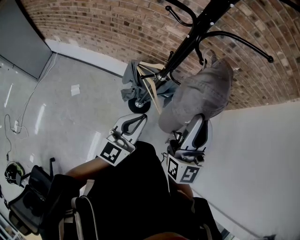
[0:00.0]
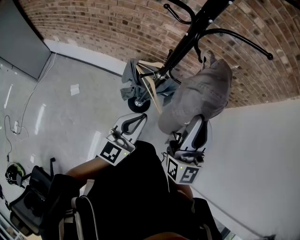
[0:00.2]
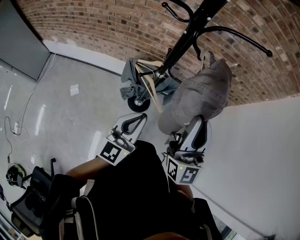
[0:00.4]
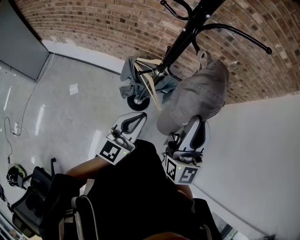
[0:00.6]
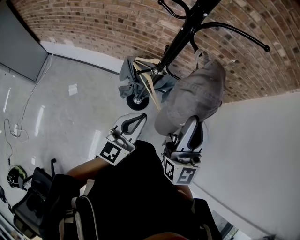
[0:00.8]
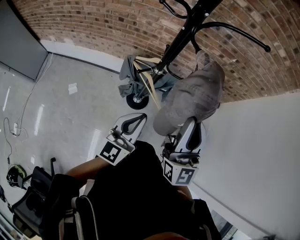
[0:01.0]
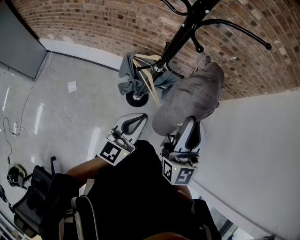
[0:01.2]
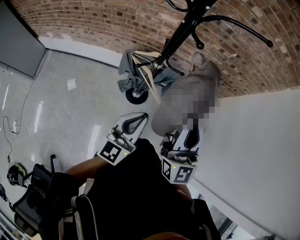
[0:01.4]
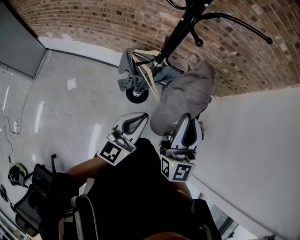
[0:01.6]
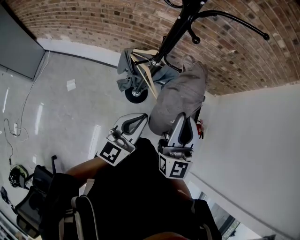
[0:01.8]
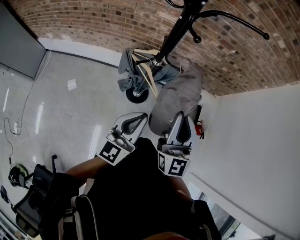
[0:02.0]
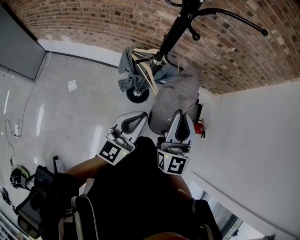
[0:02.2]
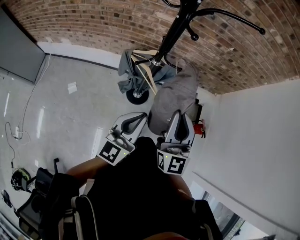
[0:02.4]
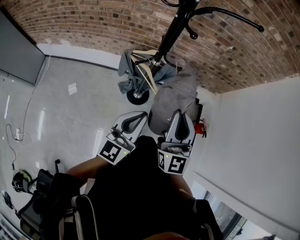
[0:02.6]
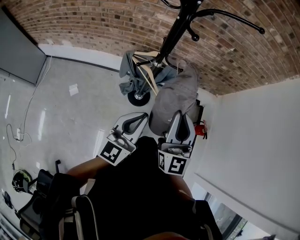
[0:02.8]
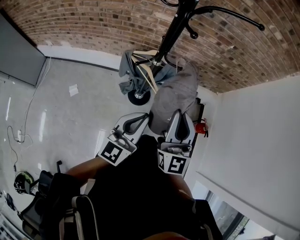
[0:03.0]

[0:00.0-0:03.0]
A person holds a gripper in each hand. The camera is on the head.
0:00.0 to 0:01.6: The right gripper moves roughly 5 cm.
0:01.6 to 0:03.0: There are only small adjustments of the grippers.

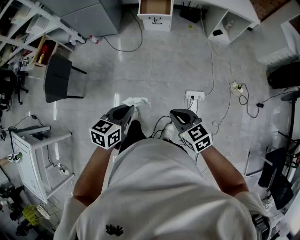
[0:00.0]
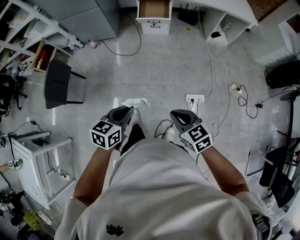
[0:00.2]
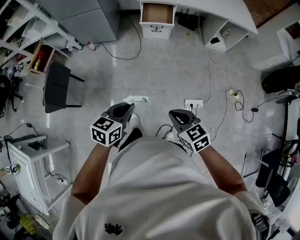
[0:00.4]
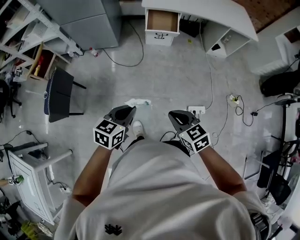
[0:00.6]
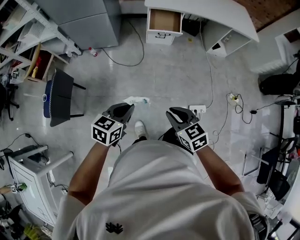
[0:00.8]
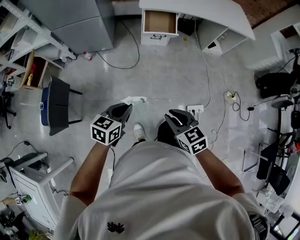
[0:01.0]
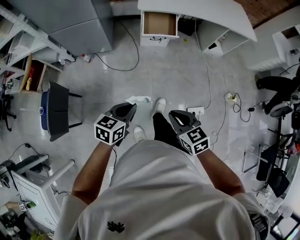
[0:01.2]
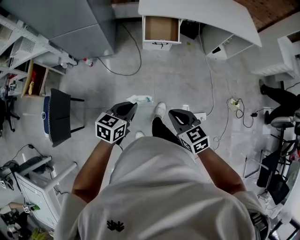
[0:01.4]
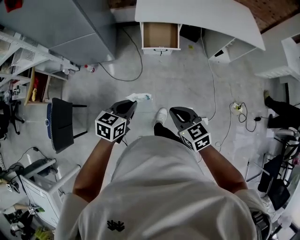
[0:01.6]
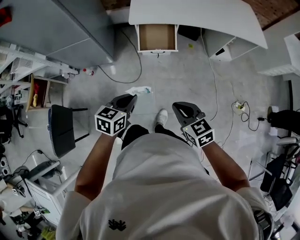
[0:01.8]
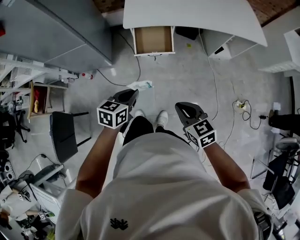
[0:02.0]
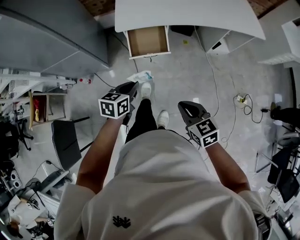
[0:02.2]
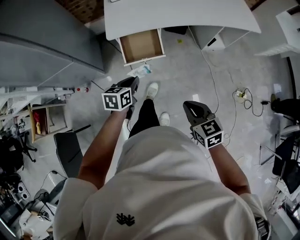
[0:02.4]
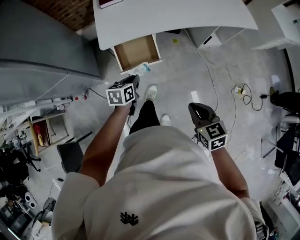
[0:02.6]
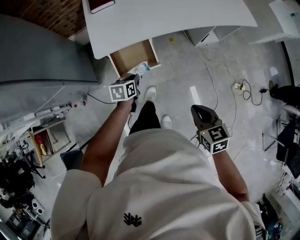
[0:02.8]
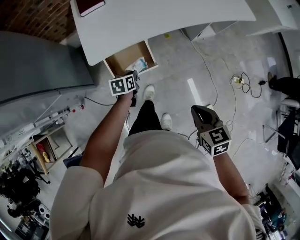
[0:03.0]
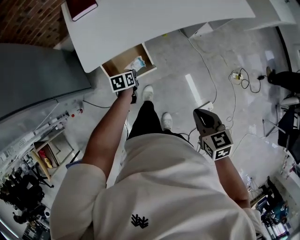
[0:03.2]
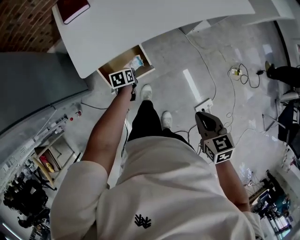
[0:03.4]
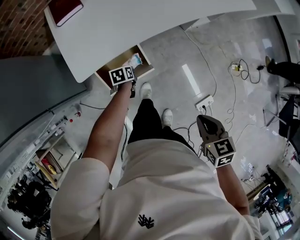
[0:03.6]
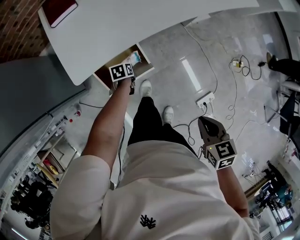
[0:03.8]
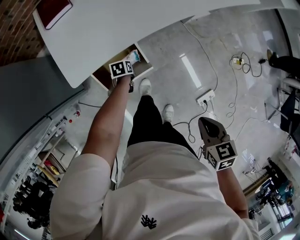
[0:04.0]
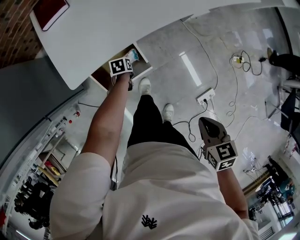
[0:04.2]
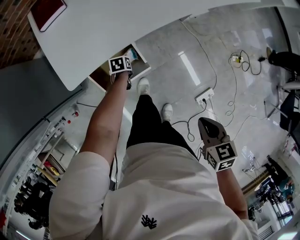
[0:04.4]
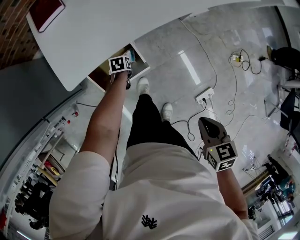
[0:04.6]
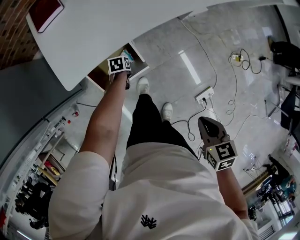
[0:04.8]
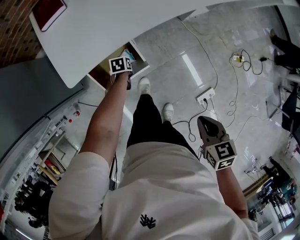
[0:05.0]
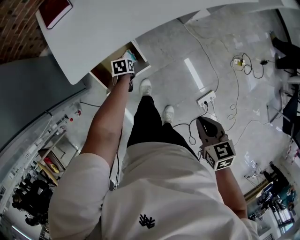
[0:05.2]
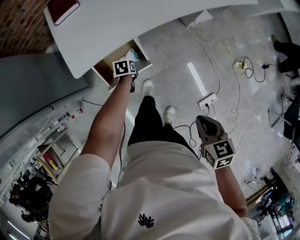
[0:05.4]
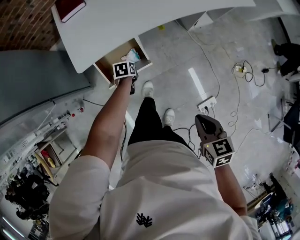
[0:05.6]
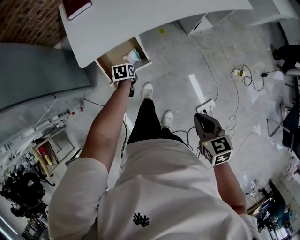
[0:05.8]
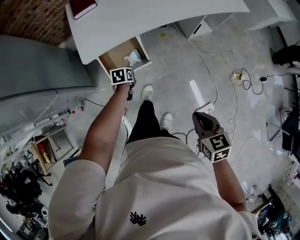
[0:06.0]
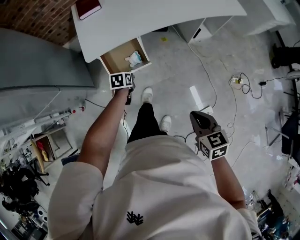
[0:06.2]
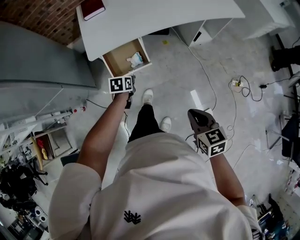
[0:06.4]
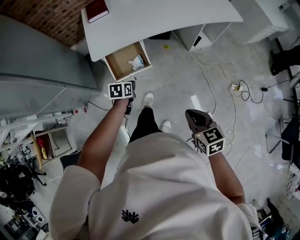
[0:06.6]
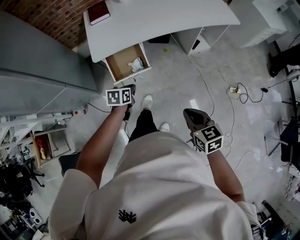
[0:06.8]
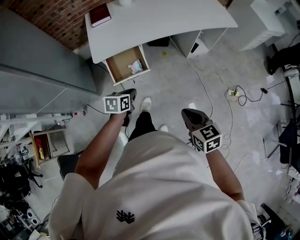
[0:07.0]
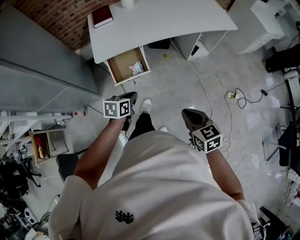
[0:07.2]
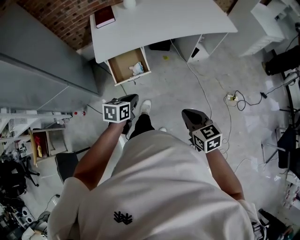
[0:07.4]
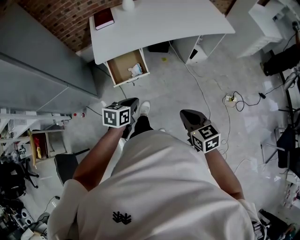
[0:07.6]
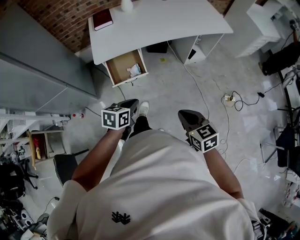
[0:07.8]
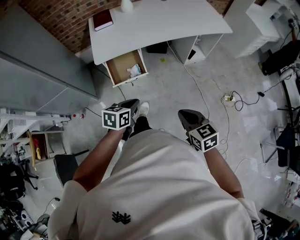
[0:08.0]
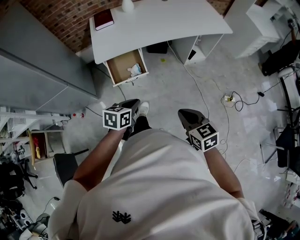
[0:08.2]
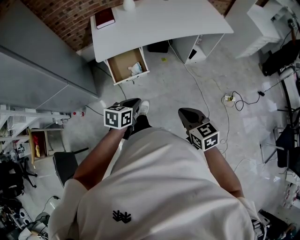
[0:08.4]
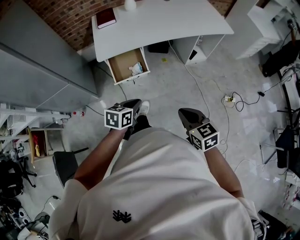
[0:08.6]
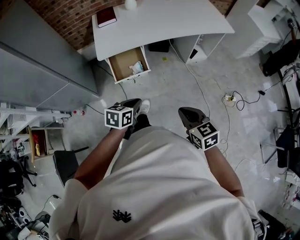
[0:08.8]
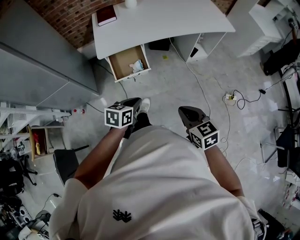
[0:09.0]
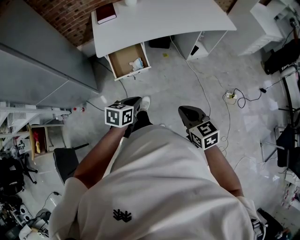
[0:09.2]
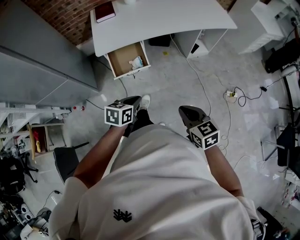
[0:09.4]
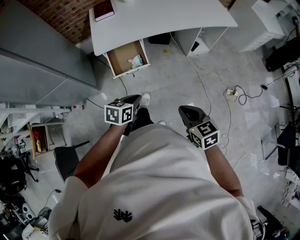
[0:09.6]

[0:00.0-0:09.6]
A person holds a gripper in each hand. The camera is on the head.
0:00.0 to 0:01.6: Both grippers are carried forward and to the left, roughly 50 cm.
0:01.6 to 0:03.2: The pair of grippers is taken forward, roughly 50 cm. The left gripper heads downward, covering roughly 25 cm, and turns by about 20 degrees. Meanwhile the right gripper swivels roughly 40 degrees.
0:03.2 to 0:04.8: The left gripper shifts about 20 cm downward and forward, and swivels some 20 degrees. Meanwhile the right gripper travels downward by approximately 10 cm.
0:04.8 to 0:06.4: The left gripper is displaced upward and backward by about 35 cm. Meanwhile the right gripper shifts roughly 20 cm backward and upward, and swivels about 20 degrees.
0:06.4 to 0:08.0: The left gripper is displaced backward and upward by about 30 cm, and changes its angle by about 20 degrees, while the right gripper heads backward and upward, covering approximately 10 cm.
0:08.0 to 0:09.6: The grippers make only small movements.

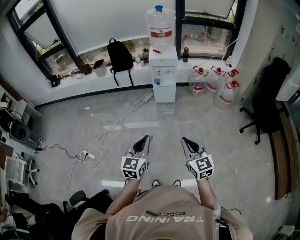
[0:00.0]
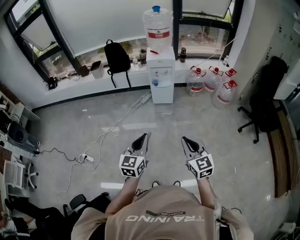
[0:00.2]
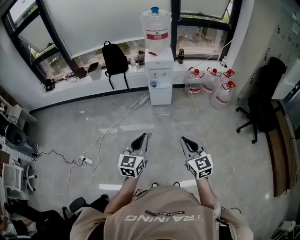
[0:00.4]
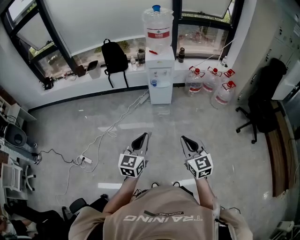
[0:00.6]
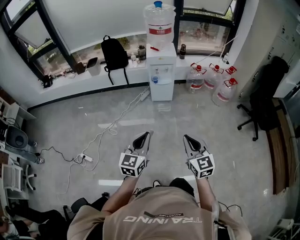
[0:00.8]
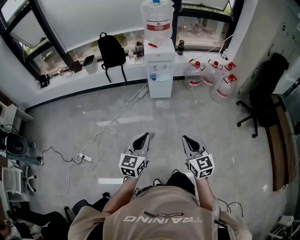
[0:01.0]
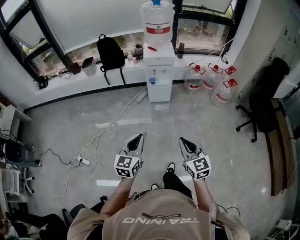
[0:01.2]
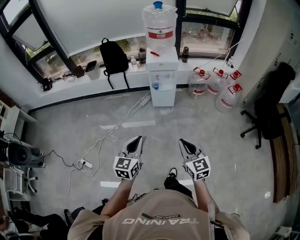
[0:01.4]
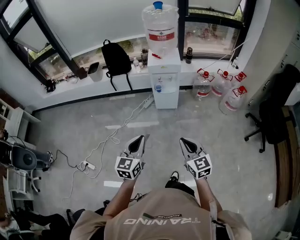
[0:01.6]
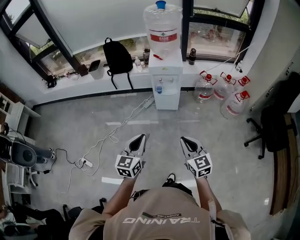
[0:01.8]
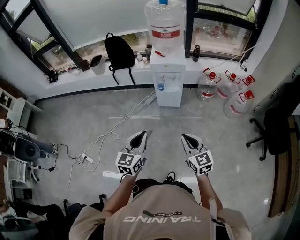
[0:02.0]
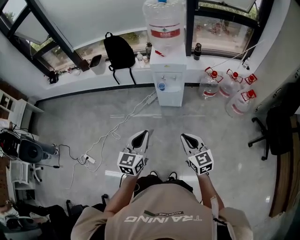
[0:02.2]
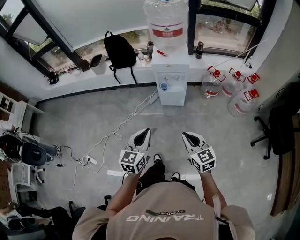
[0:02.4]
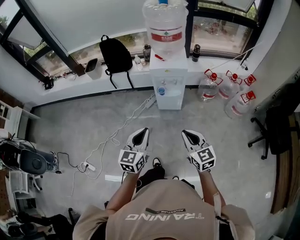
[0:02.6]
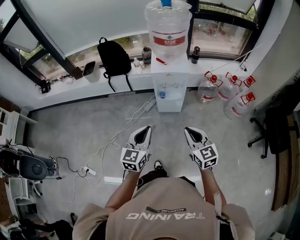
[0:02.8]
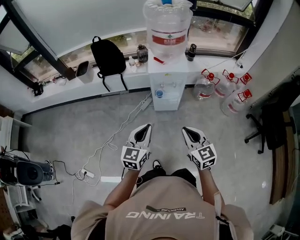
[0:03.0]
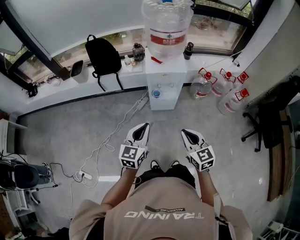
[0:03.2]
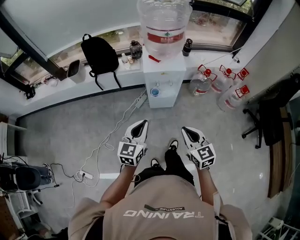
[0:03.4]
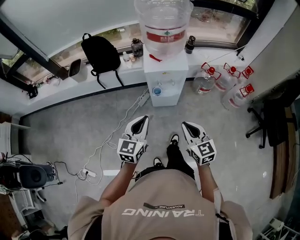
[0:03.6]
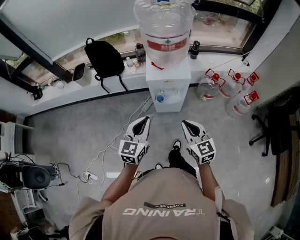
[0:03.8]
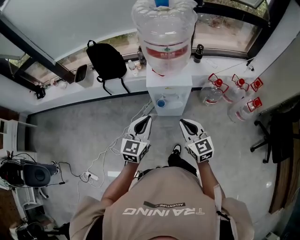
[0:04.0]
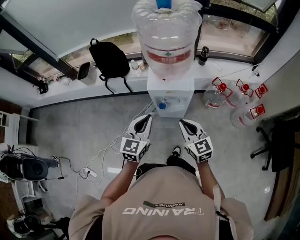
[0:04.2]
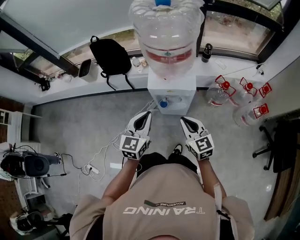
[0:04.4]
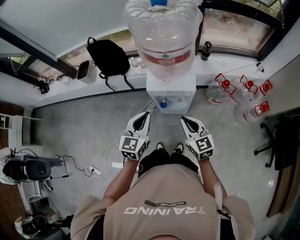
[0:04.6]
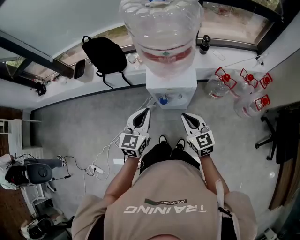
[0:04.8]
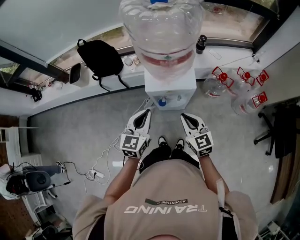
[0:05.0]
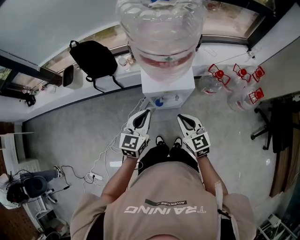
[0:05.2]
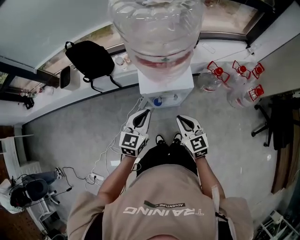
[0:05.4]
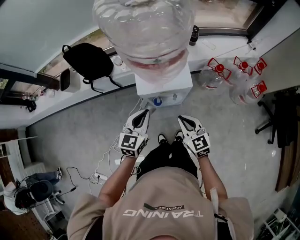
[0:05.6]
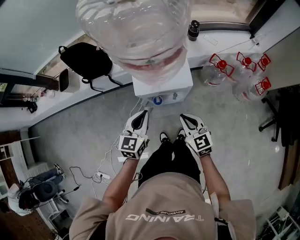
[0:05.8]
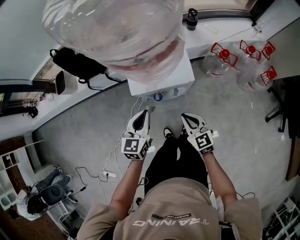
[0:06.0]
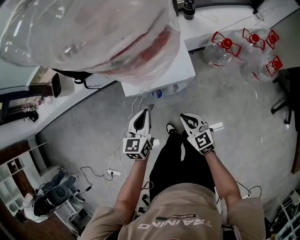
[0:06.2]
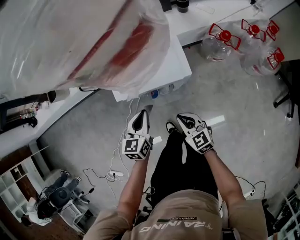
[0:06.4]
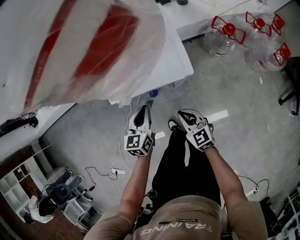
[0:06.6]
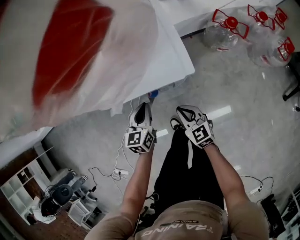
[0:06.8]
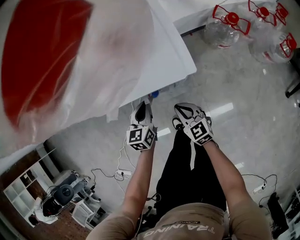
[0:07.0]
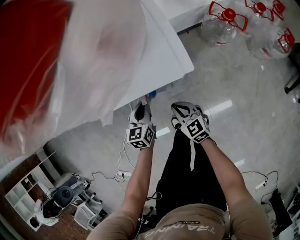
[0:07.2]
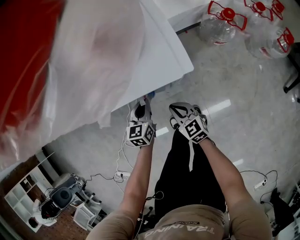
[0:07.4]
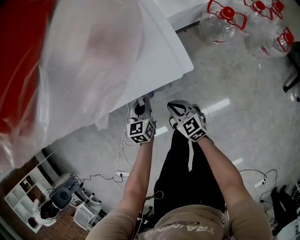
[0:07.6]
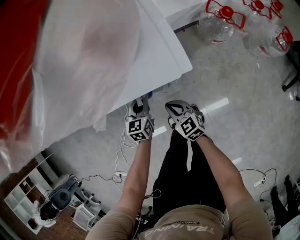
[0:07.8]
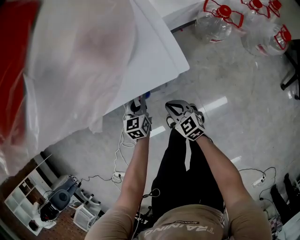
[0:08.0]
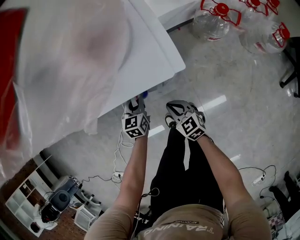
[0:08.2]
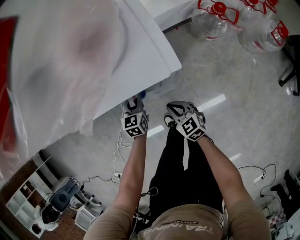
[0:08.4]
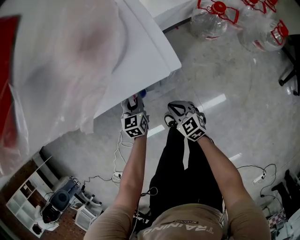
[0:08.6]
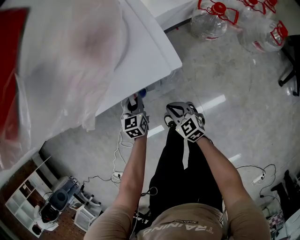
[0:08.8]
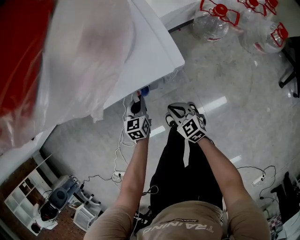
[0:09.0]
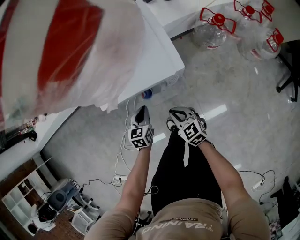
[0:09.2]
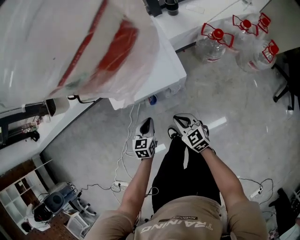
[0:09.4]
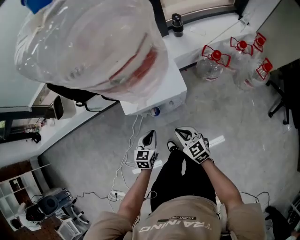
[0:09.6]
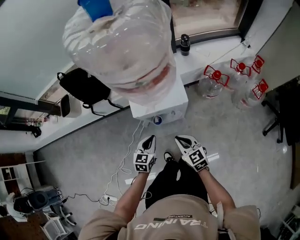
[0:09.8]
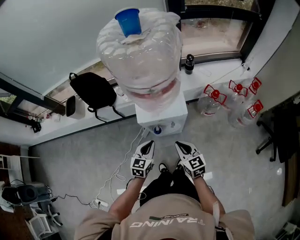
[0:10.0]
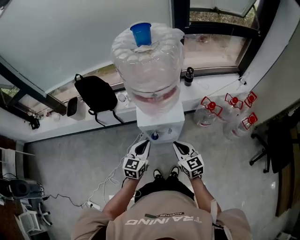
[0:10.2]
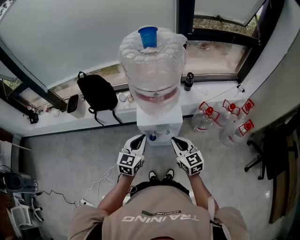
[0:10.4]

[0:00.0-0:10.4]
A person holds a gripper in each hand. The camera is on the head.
0:00.0 to 0:01.4: Both grippers move forward, approximately 15 cm.
0:01.4 to 0:03.0: Both grippers travel together forward, roughly 30 cm.
0:03.0 to 0:04.4: Both grippers move forward, approximately 25 cm.
0:04.4 to 0:06.0: The left gripper shifts approximately 20 cm downward and forward; the right gripper heads downward, covering about 15 cm.
0:06.0 to 0:07.4: Both grippers travel together downward, roughly 25 cm.
0:07.4 to 0:09.0: The grippers move only a little.
0:09.0 to 0:10.4: Both grippers move upward, roughly 40 cm. The left gripper turns by about 20 degrees.

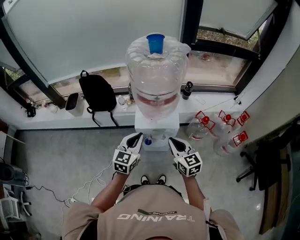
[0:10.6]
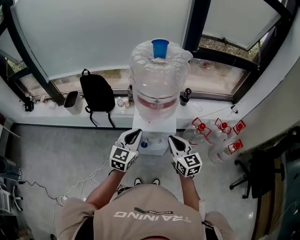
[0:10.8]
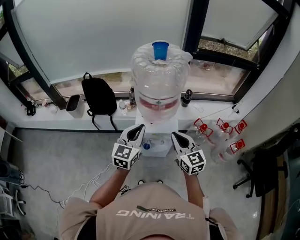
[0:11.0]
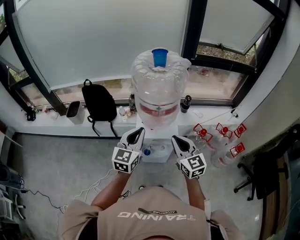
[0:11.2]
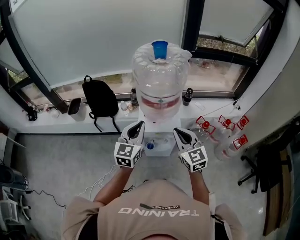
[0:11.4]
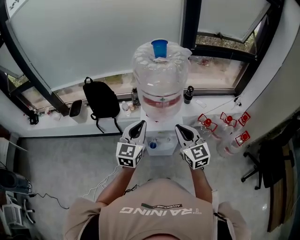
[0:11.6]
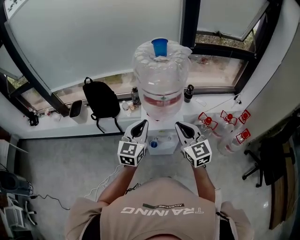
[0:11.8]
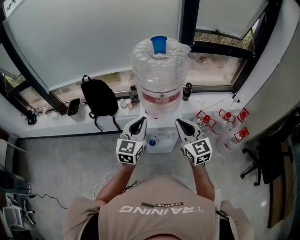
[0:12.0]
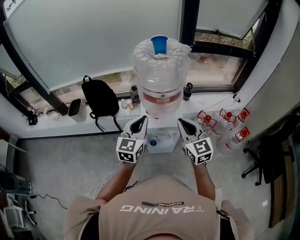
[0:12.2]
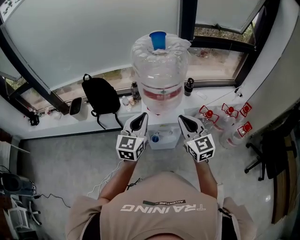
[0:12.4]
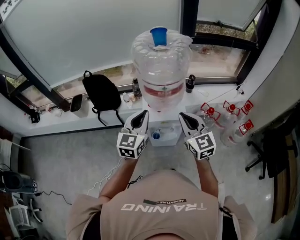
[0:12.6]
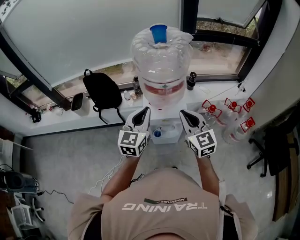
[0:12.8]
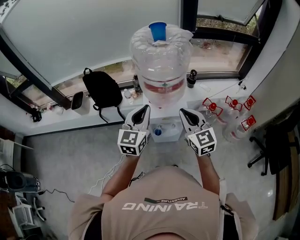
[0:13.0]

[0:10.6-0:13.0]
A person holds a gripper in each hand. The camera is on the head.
0:10.6 to 0:11.8: The two grippers go roughly 10 cm upward.
0:11.8 to 0:13.0: The grippers stay close to where they were, moving slightly.
